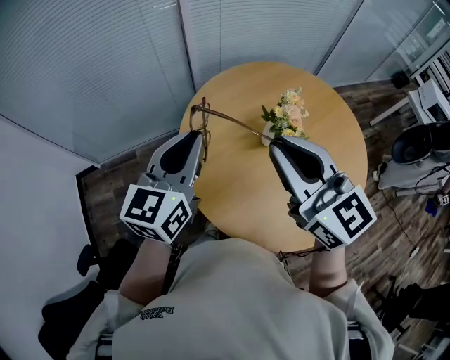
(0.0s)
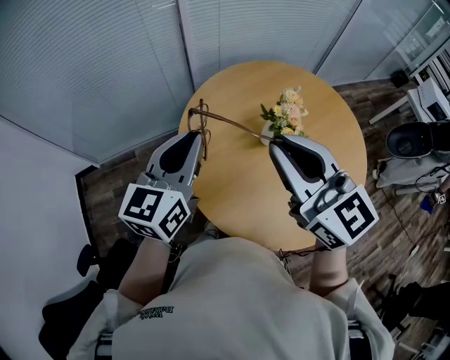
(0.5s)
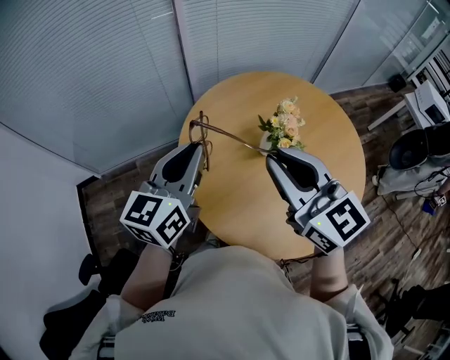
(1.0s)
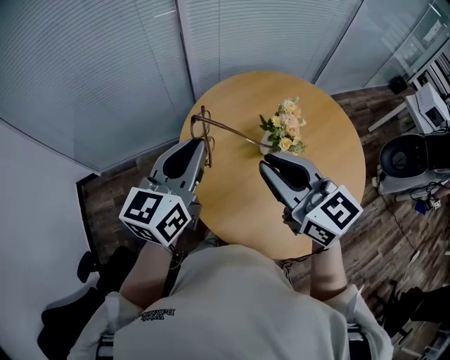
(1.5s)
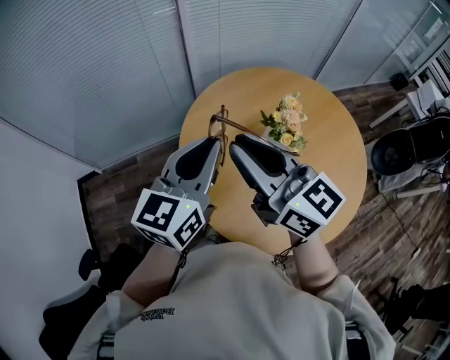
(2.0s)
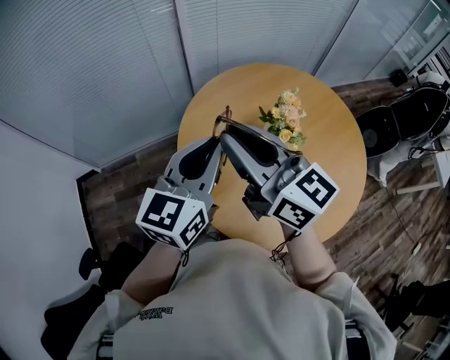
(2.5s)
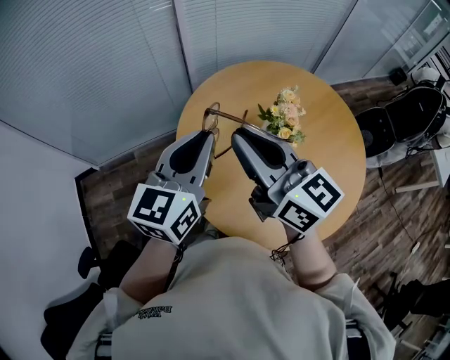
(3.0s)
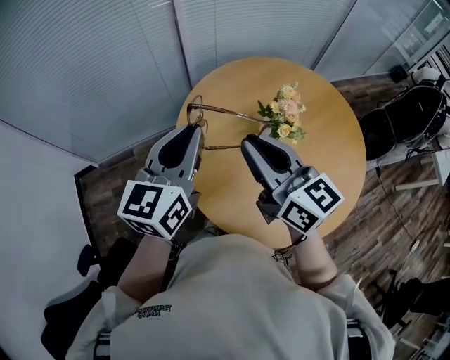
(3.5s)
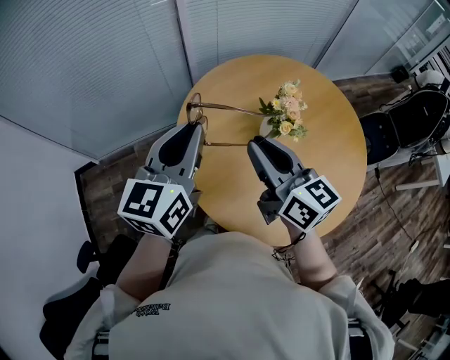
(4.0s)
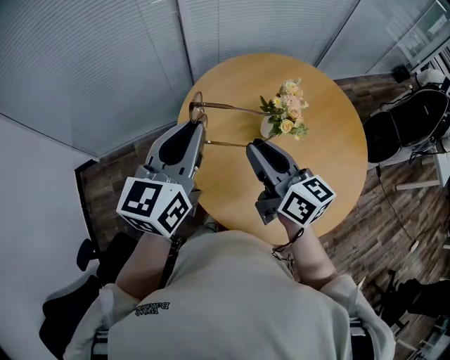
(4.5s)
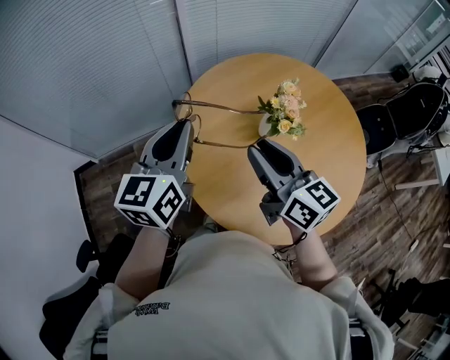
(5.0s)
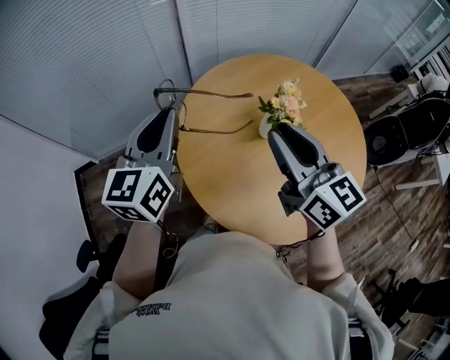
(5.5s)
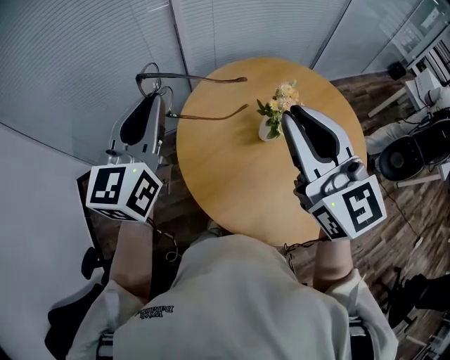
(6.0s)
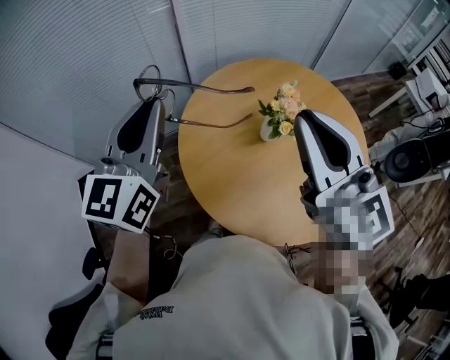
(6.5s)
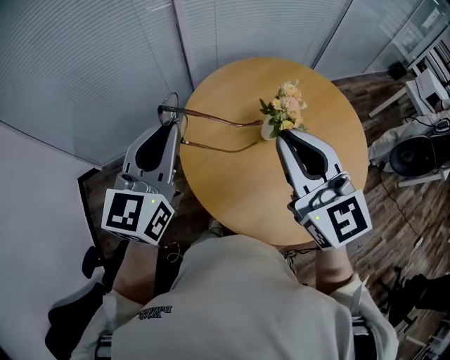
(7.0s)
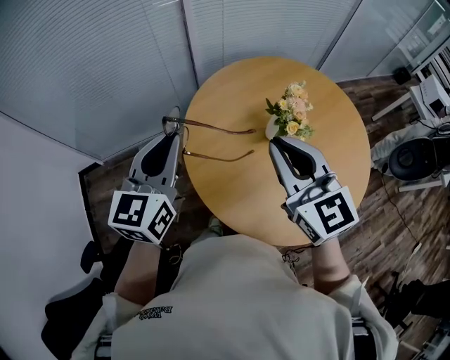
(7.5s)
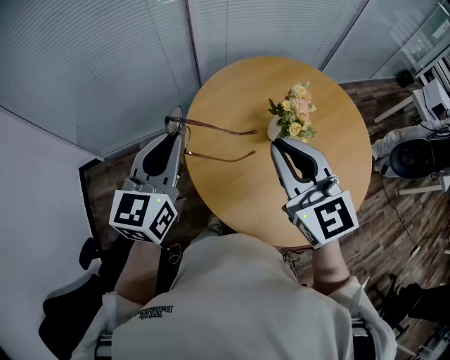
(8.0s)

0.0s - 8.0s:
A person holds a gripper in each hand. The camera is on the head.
0.0s - 2.0s: The right gripper heads to the left, covering roughly 5 cm.
2.0s - 4.0s: The right gripper goes roughly 10 cm downward.
4.0s - 6.0s: The left gripper moves upward and to the left, roughly 10 cm. The right gripper shifts about 15 cm upward, and changes its angle by some 30 degrees.
6.0s - 8.0s: Both grippers travel together downward, some 10 cm.

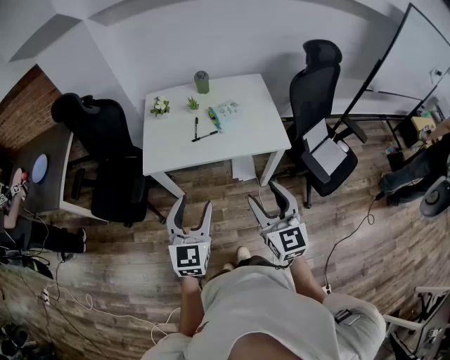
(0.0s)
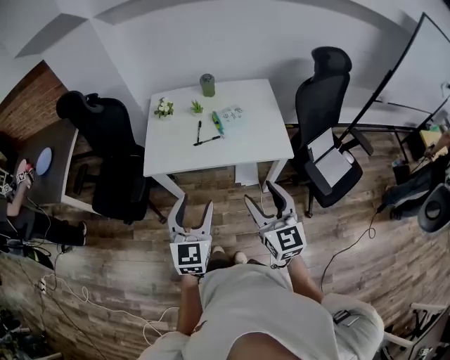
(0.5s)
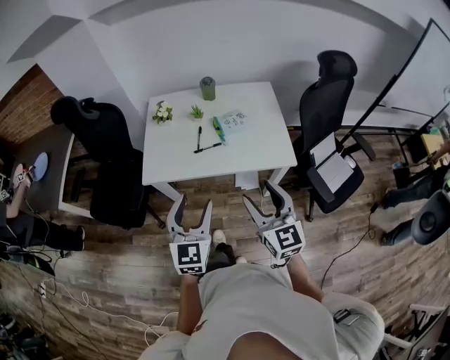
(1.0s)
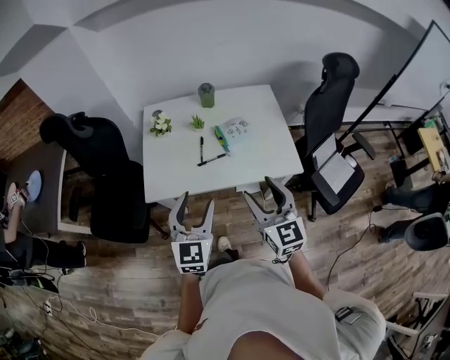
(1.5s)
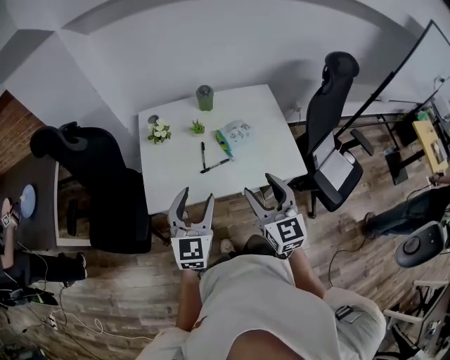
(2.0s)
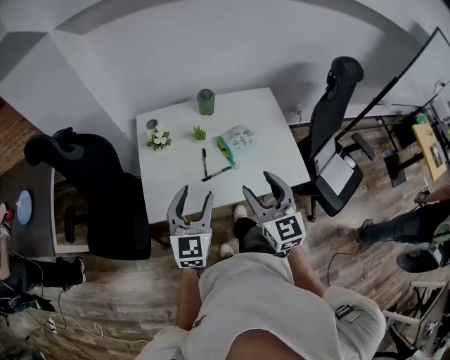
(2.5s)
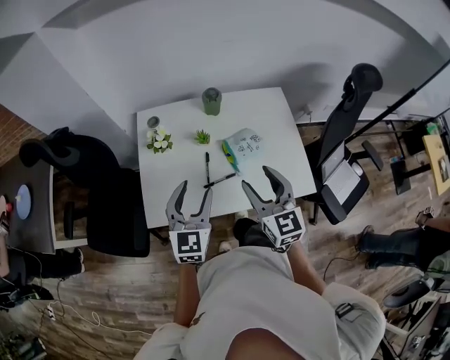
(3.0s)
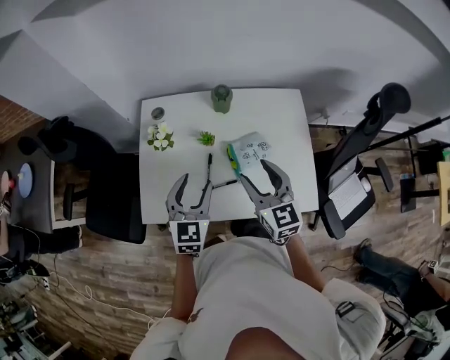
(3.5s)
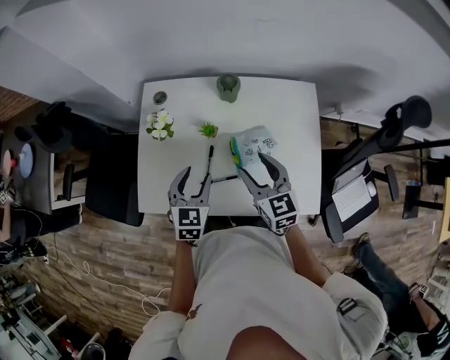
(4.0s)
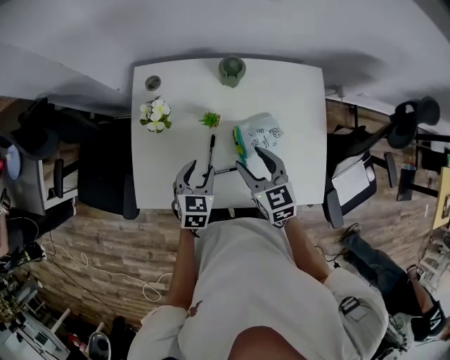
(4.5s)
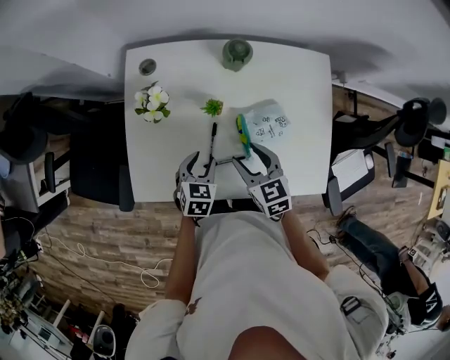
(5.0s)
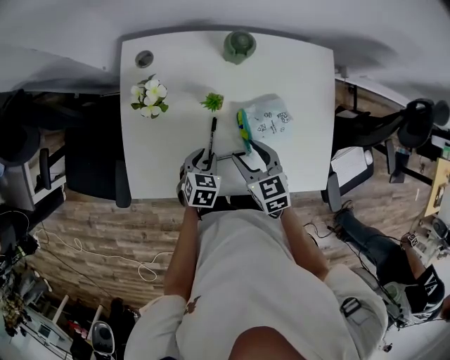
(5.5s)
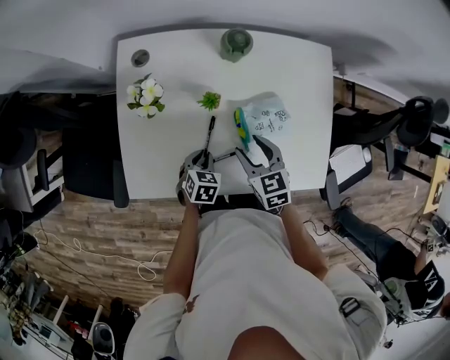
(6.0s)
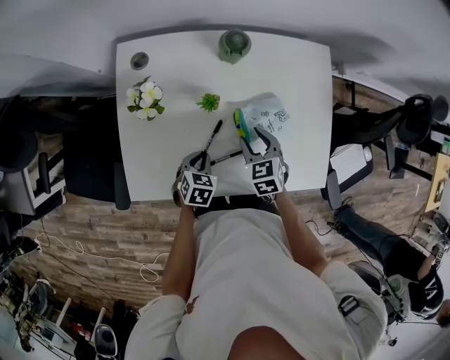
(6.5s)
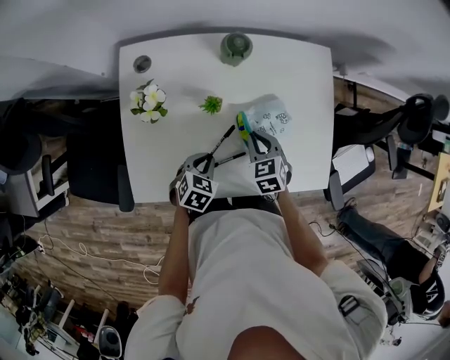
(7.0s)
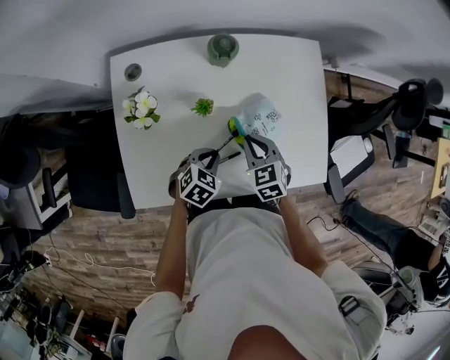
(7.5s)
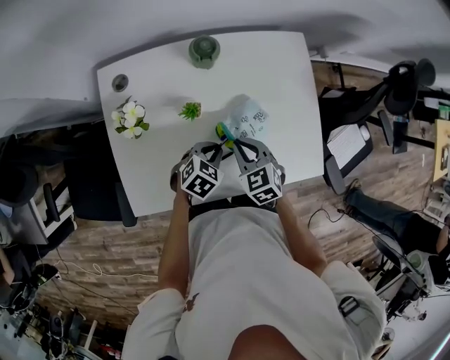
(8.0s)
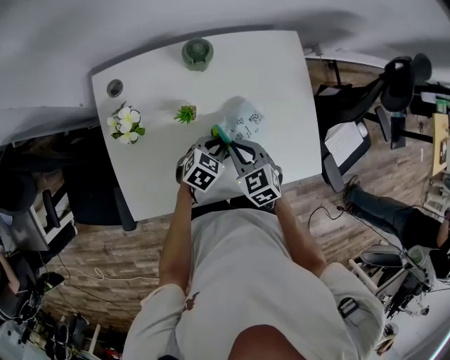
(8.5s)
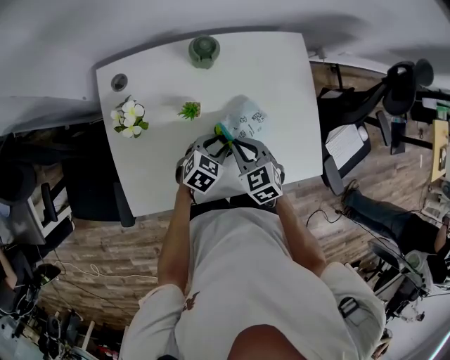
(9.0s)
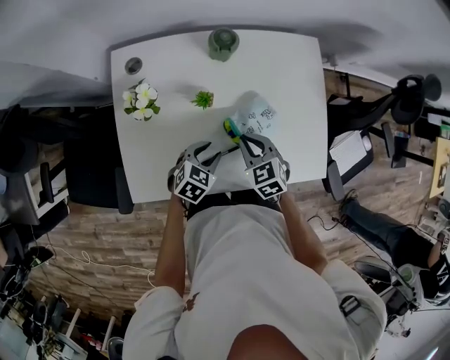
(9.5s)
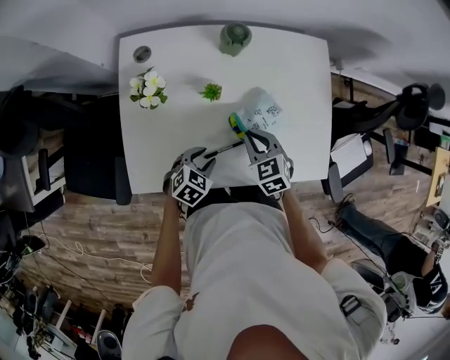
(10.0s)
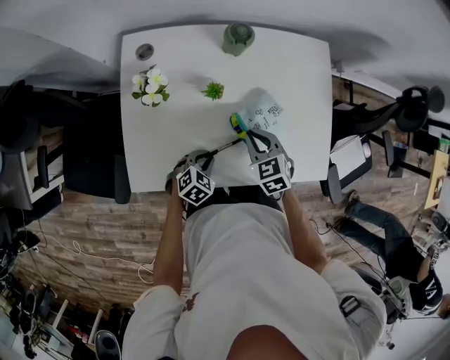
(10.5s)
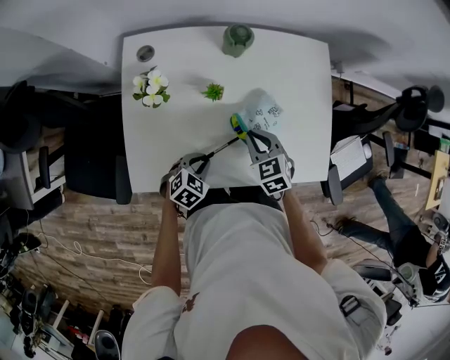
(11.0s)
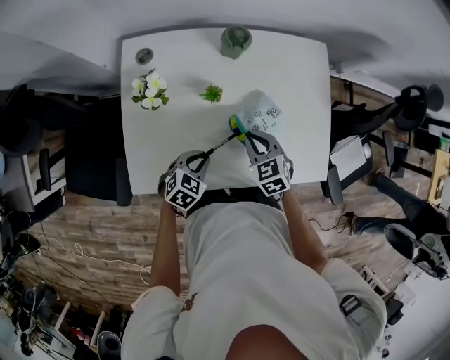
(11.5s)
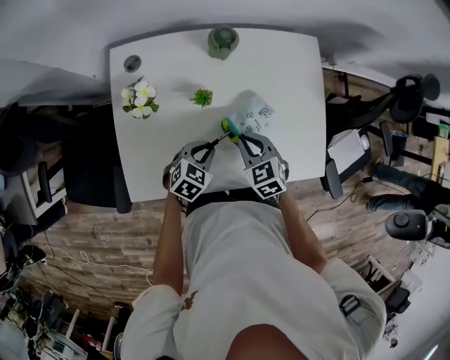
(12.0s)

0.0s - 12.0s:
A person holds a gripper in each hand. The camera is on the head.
0.0s - 2.0s: Both grippers move forward, about 25 cm.
2.0s - 4.0s: Both grippers move forward and downward, about 30 cm. The right gripper changes its angle by approximately 20 degrees; the left gripper rotates about 30 degrees.
4.0s - 6.0s: The right gripper moves downward, approximately 15 cm, and rotates approximately 20 degrees, while the left gripper travels downward by approximately 20 cm, changes its angle by roughly 30 degrees, and closes its fingers.
6.0s - 8.0s: The right gripper closes its fingers, while the left gripper shifts some 10 cm to the right and upward, and swivels about 30 degrees.
8.0s - 10.0s: The left gripper moves backward and to the left, roughly 10 cm, and opens its fingers.
10.0s - 12.0s: The left gripper shifts by some 5 cm, and closes its fingers.

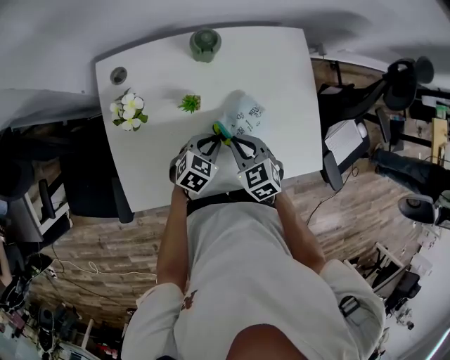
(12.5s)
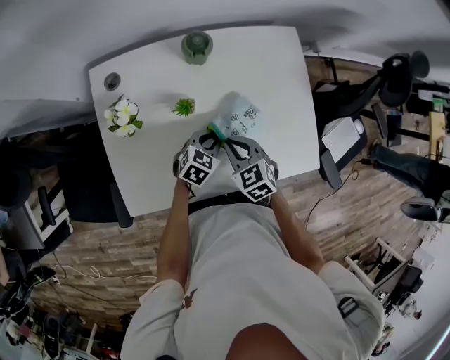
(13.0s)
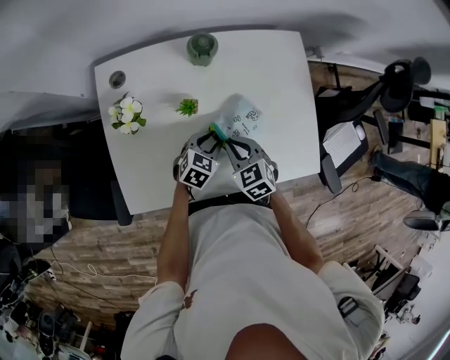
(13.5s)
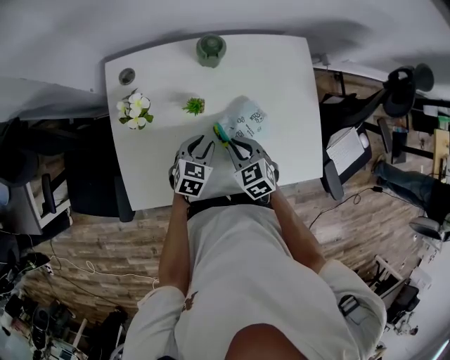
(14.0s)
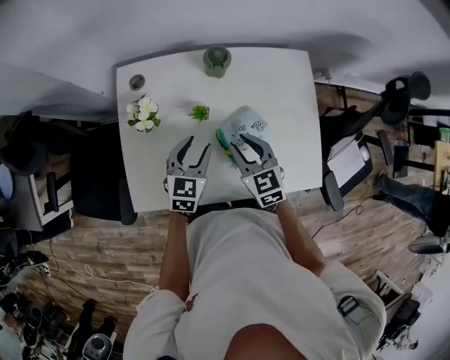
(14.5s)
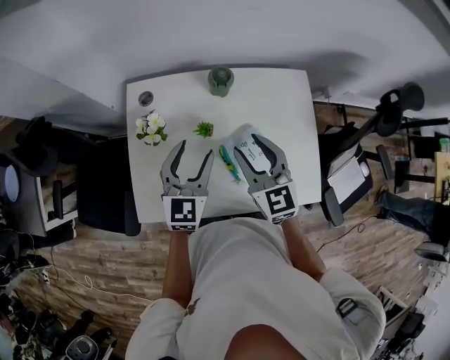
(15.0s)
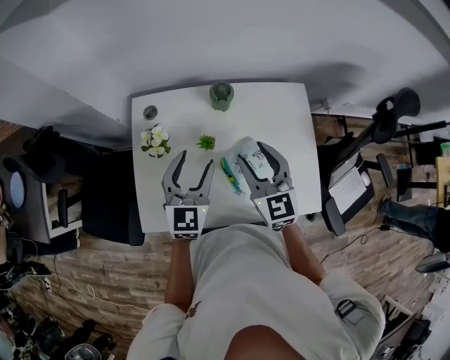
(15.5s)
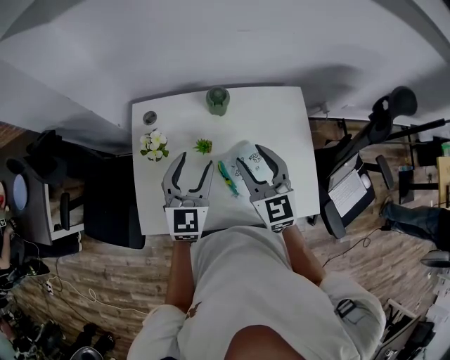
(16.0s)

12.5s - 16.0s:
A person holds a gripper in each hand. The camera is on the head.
12.5s - 14.5s: The right gripper shifts approximately 10 cm upward, and opens. The left gripper travels upward and to the left by some 15 cm, rotates about 30 degrees, and opens its fingers.
14.5s - 16.0s: Both grippers travel together upward, some 15 cm. The left gripper rotates about 20 degrees, while the right gripper swivels about 20 degrees.

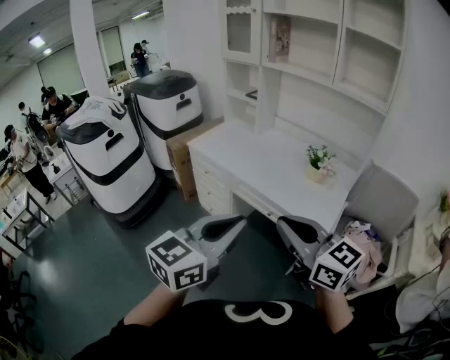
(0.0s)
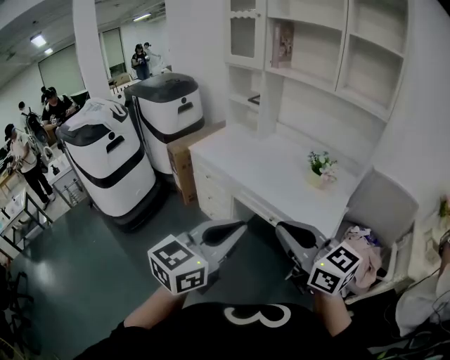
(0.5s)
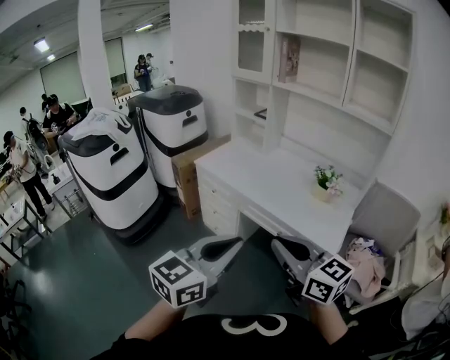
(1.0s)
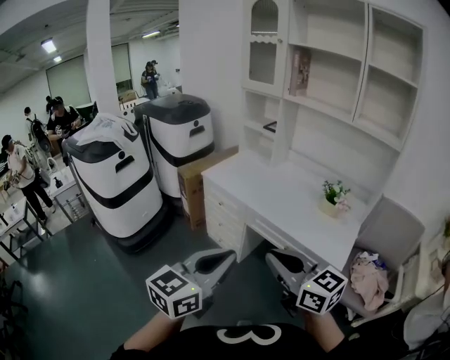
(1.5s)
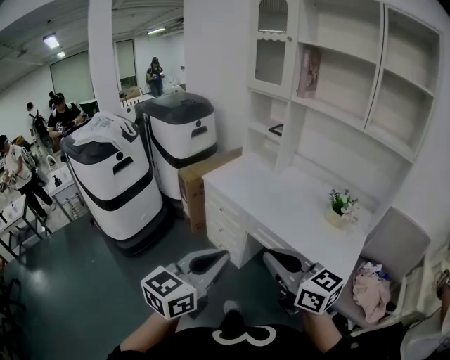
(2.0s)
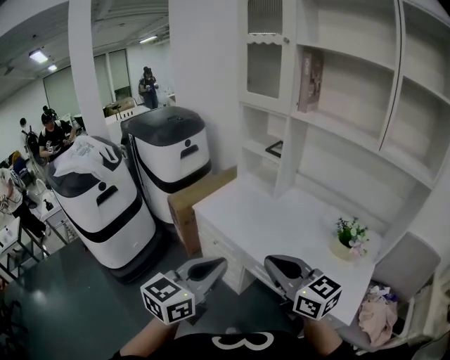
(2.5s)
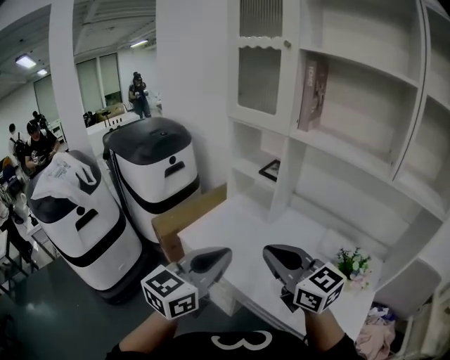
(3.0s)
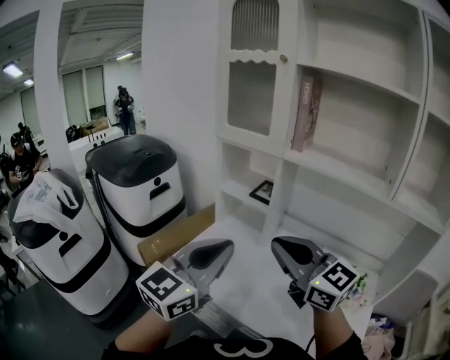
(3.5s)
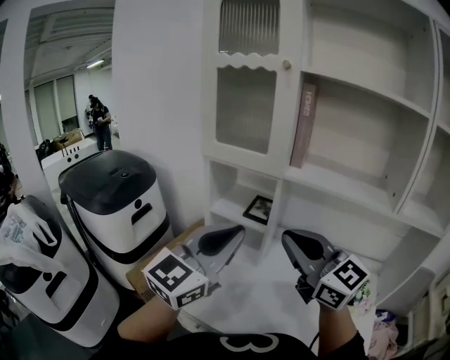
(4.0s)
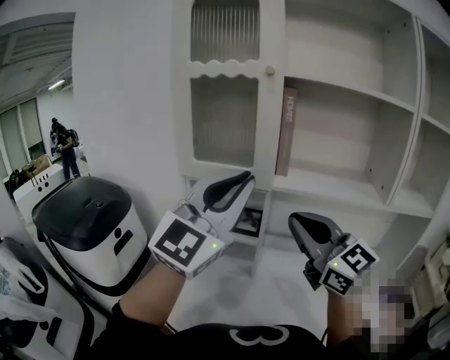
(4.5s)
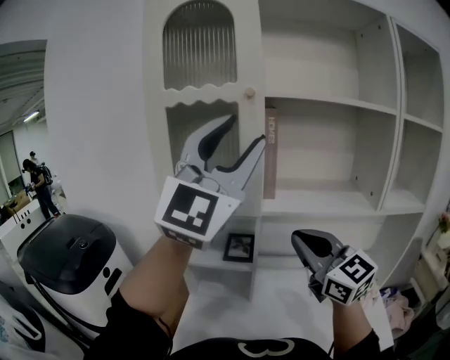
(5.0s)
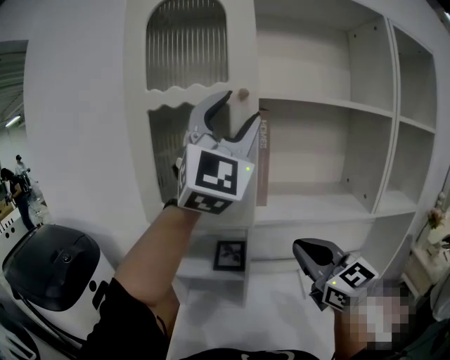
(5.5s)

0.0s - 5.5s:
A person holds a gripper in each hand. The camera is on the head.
0.0s - 2.0s: The grippers both shift to the left and forward by about 20 cm.
2.0s - 3.5s: The pair of grippers is taken forward, approximately 50 cm.
3.5s - 5.5s: The left gripper heads upward, covering some 35 cm, rotates around the line of its fingers by approximately 40 degrees, clockwise from behind, and opens up. Meanwhile the right gripper moves roughly 20 cm, and changes its angle by about 40 degrees.
